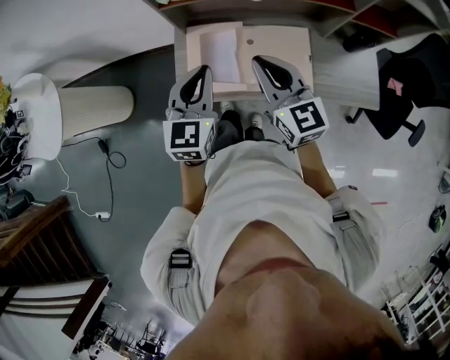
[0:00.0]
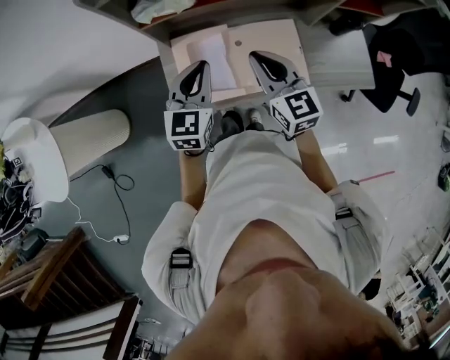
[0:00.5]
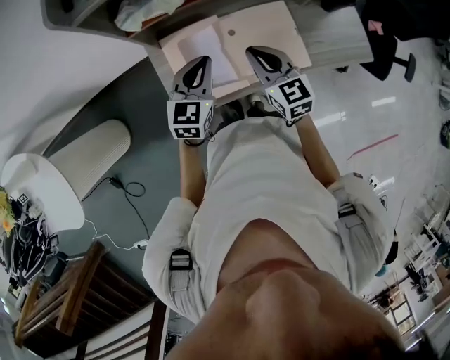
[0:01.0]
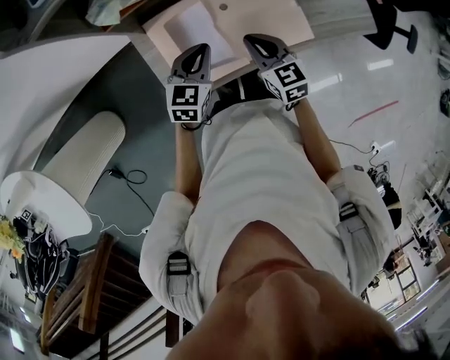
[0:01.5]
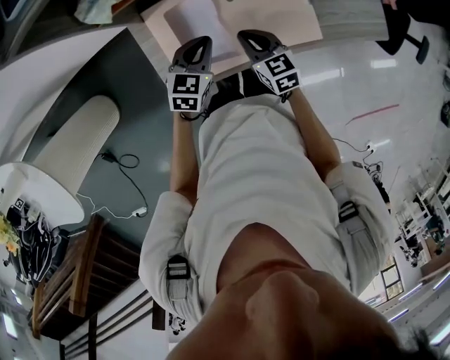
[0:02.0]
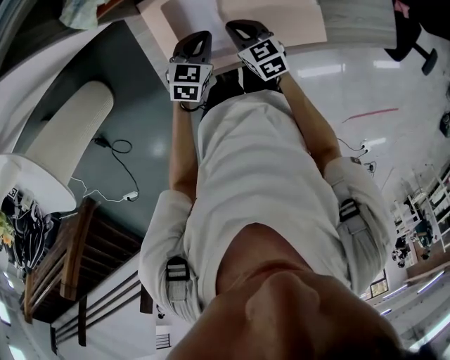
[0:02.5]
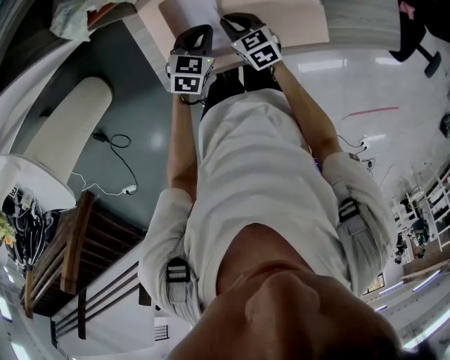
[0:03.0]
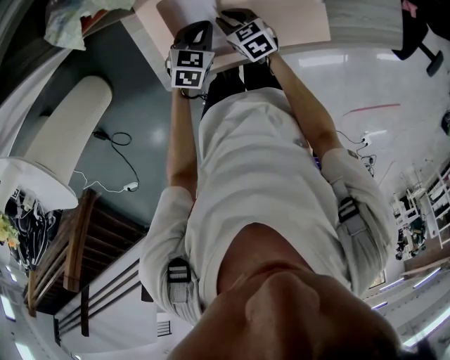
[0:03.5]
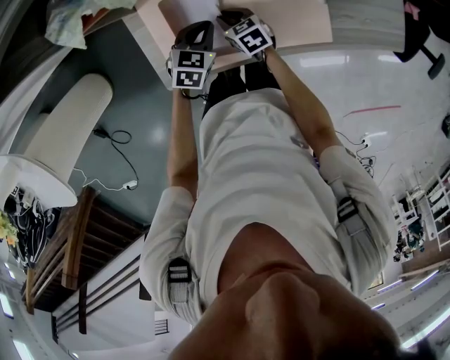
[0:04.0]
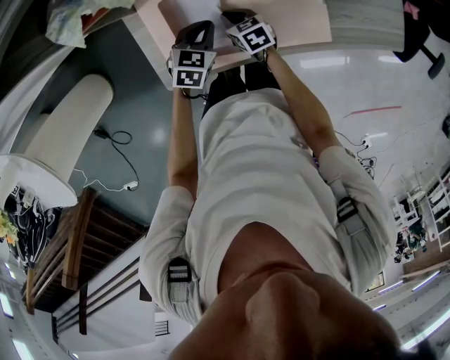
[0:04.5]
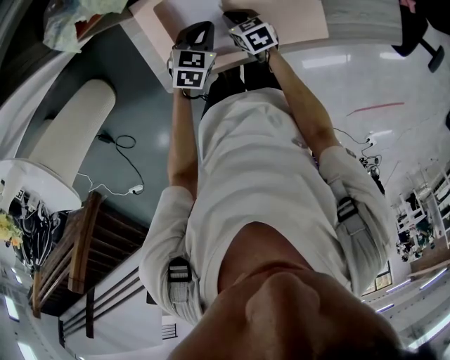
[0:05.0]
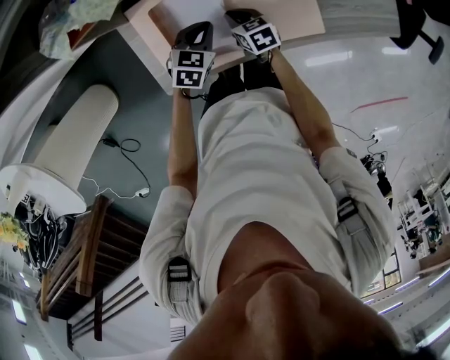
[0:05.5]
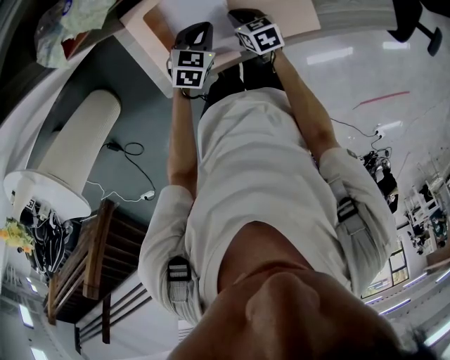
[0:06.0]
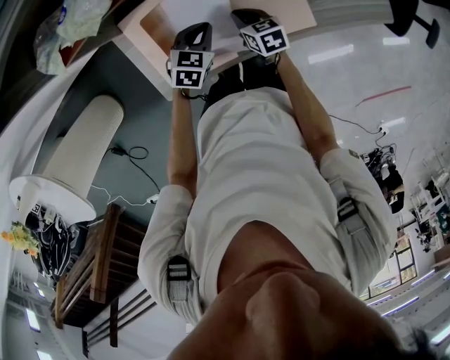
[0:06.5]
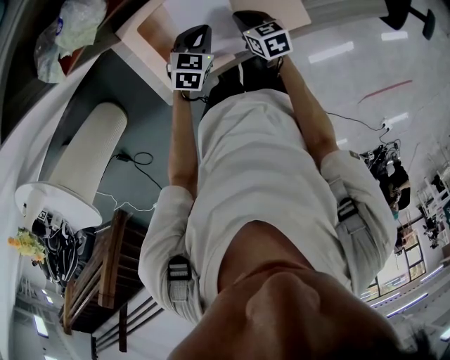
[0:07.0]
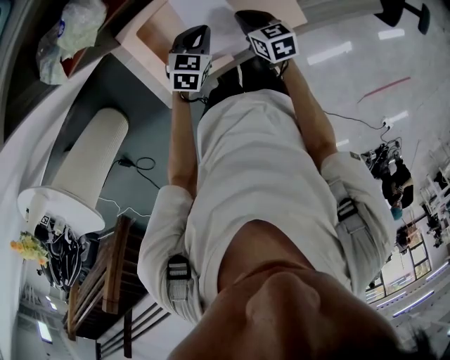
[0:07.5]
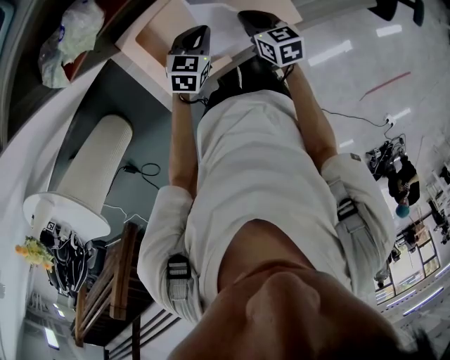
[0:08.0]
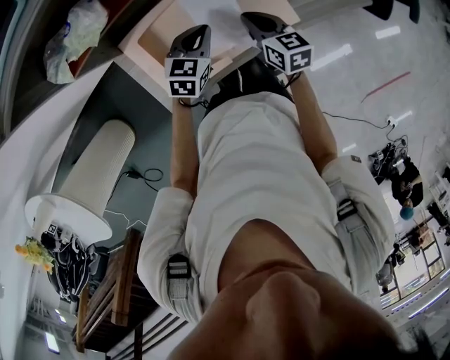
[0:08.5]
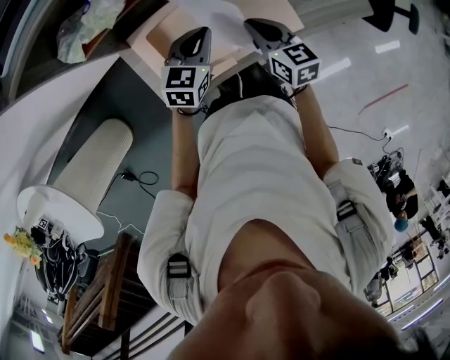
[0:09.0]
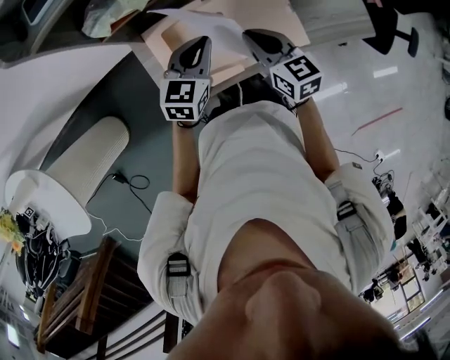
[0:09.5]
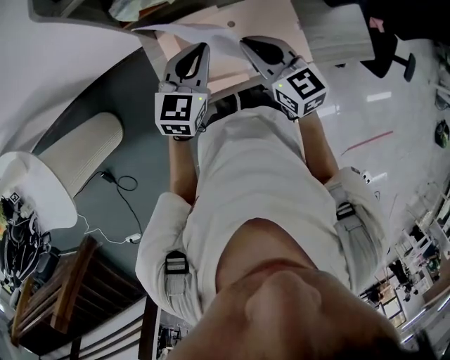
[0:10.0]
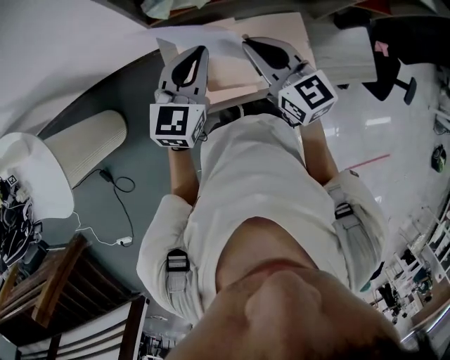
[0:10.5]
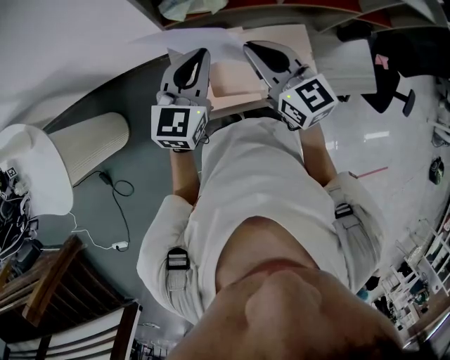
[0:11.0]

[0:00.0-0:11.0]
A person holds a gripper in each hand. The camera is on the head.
0.0 to 2.0 s: The two grippers go approximately 30 cm downward. The left gripper rotates roughly 40 degrees. The right gripper tips its fingers downward by approximately 30 degrees.
2.0 to 3.5 s: The grippers both shift downward by some 10 cm.
3.5 to 5.5 s: The grippers make only small movements.
5.5 to 7.5 s: The right gripper shifts some 10 cm to the right and upward. The left gripper shifts by about 5 cm.
7.5 to 9.0 s: Both grippers move upward, roughly 15 cm.
9.0 to 11.0 s: The grippers both shift upward and to the left by approximately 25 cm. The left gripper swivels roughly 30 degrees; the right gripper swivels about 30 degrees.

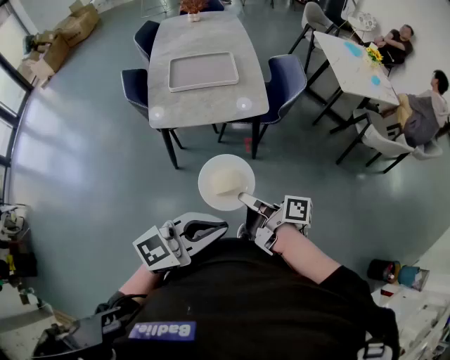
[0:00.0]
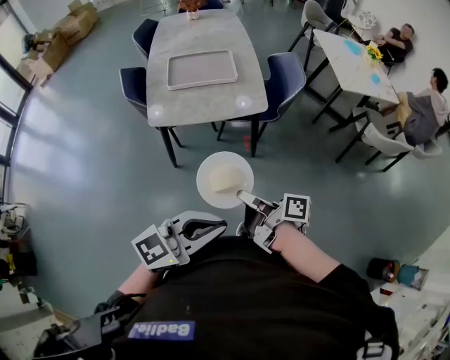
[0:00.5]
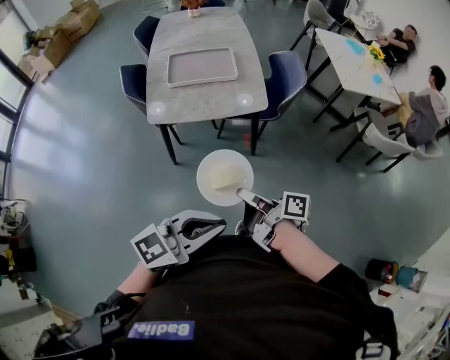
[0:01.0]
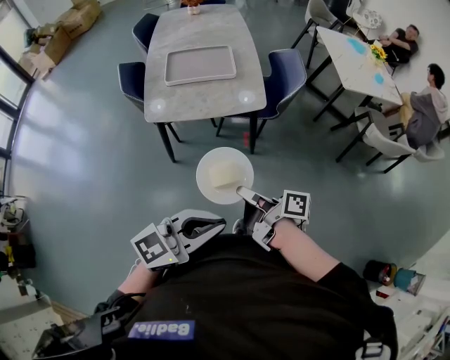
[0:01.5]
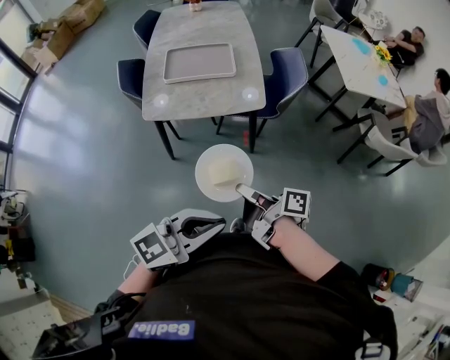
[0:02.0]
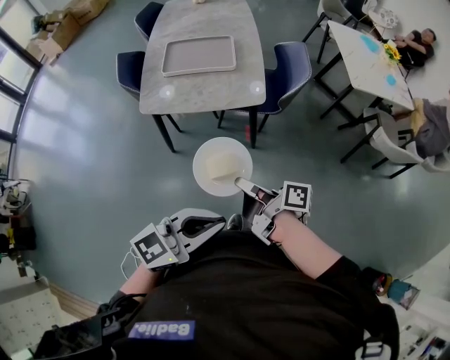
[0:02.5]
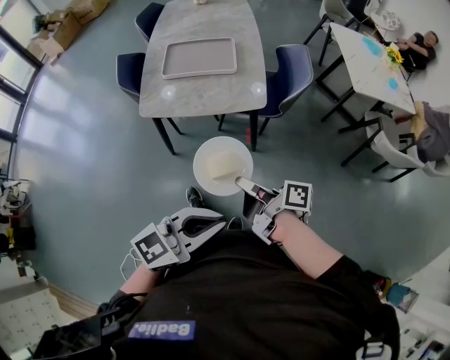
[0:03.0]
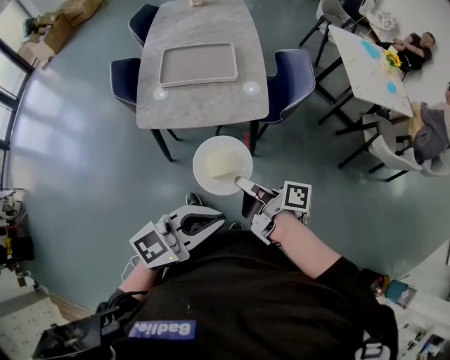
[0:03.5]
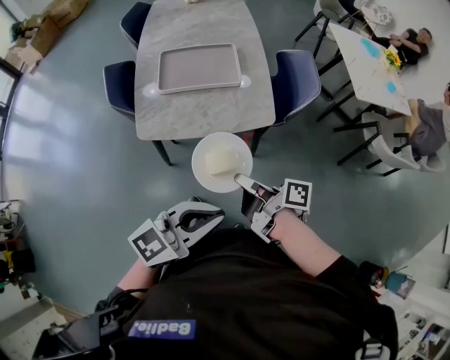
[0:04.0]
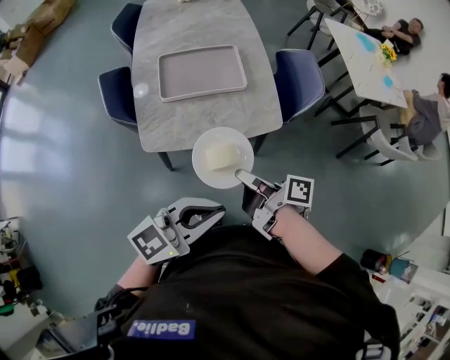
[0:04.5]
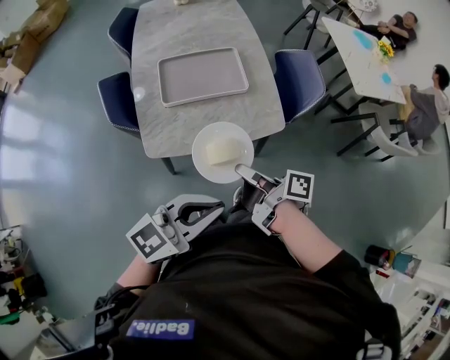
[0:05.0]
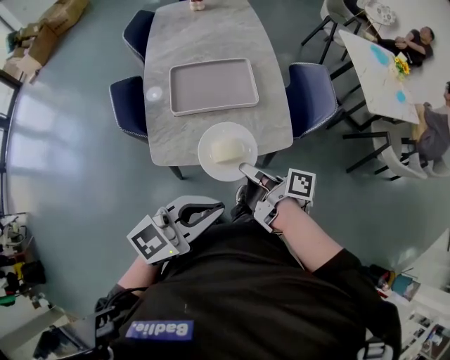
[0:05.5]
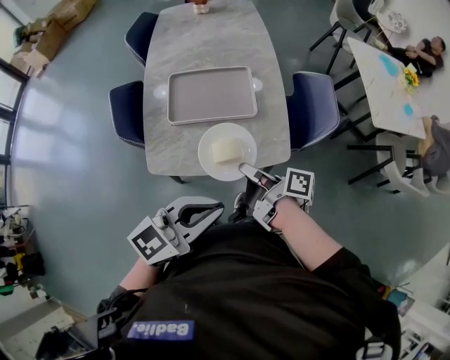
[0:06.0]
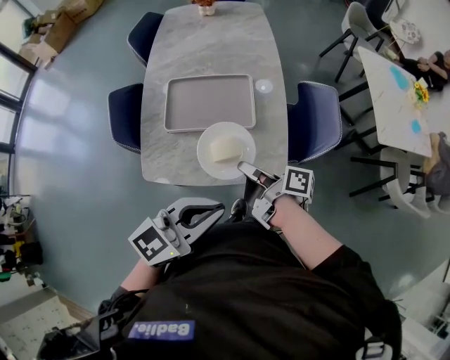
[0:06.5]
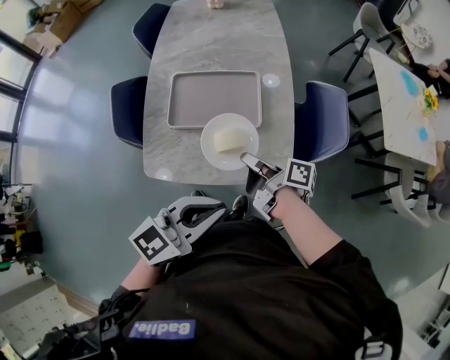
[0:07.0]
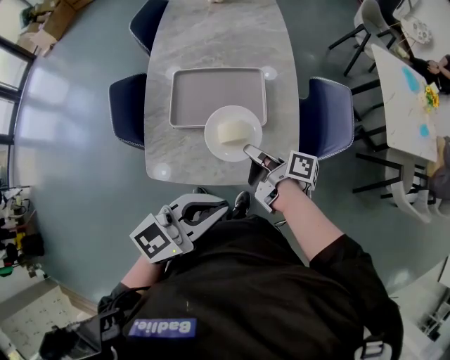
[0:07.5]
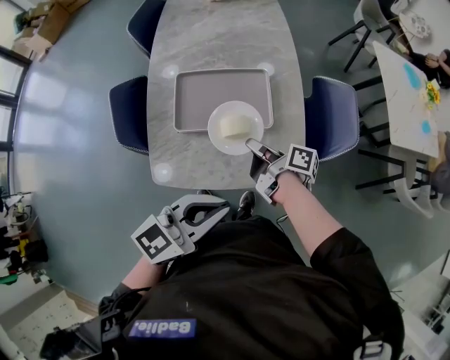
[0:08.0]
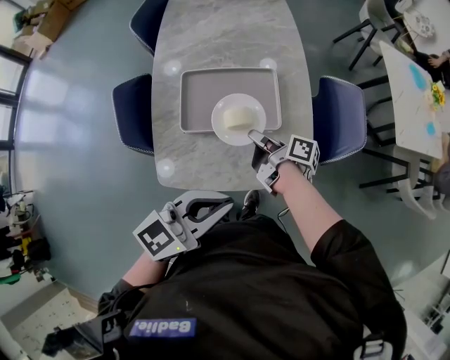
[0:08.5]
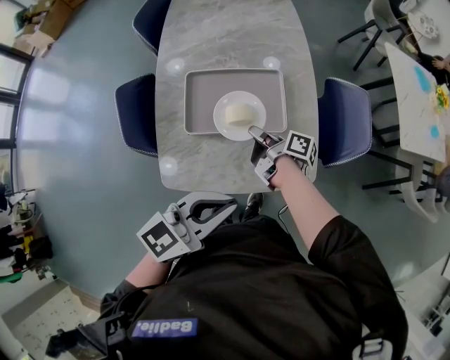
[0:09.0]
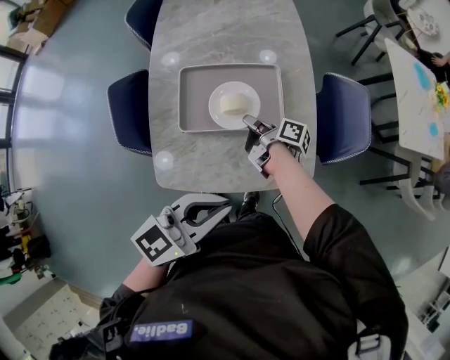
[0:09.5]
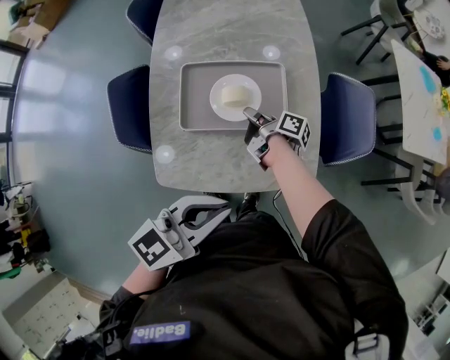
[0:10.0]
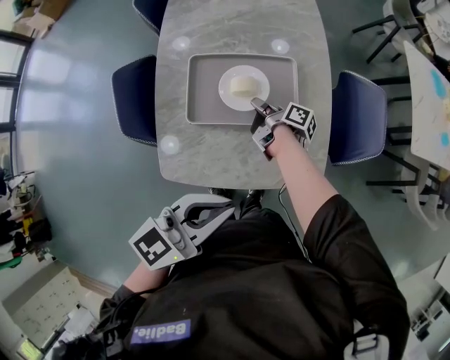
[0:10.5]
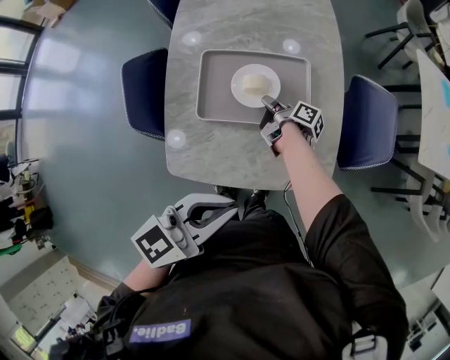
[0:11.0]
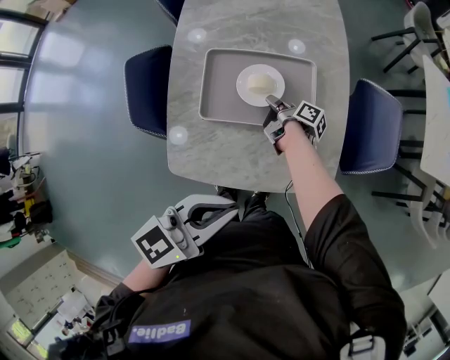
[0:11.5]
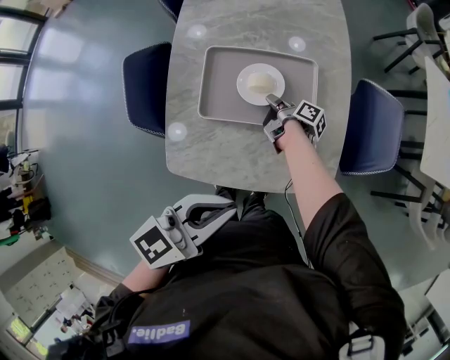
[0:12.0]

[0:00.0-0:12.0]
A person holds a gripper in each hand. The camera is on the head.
0.0 to 2.0 s: The left gripper ends up approximately 5 cm from where it was.
2.0 to 4.0 s: The left gripper changes place by approximately 15 cm.
4.0 to 6.0 s: The left gripper moves roughly 15 cm.
6.0 to 8.0 s: The left gripper changes place by approximately 10 cm.
8.0 to 10.0 s: The left gripper moves approximately 5 cm.

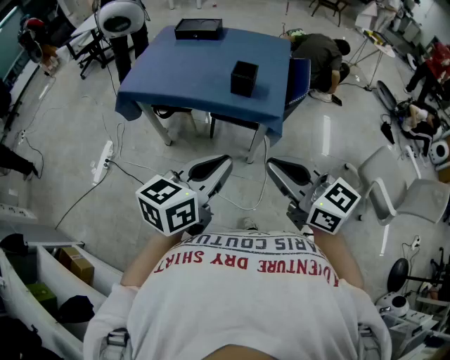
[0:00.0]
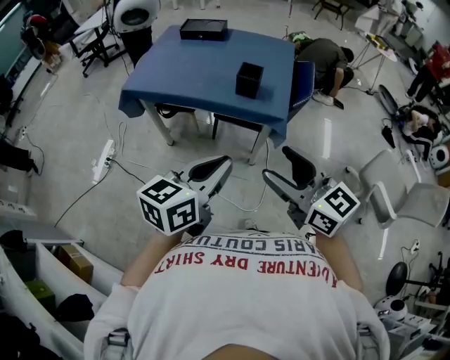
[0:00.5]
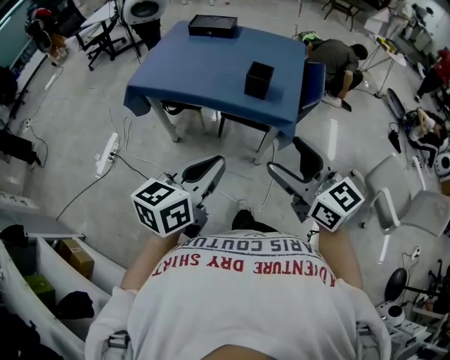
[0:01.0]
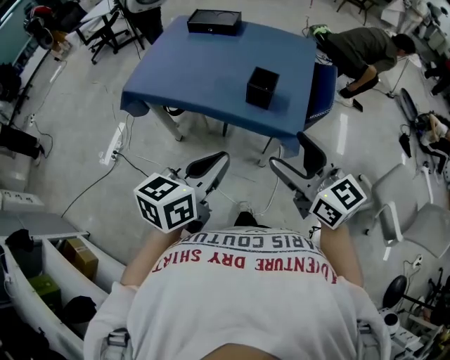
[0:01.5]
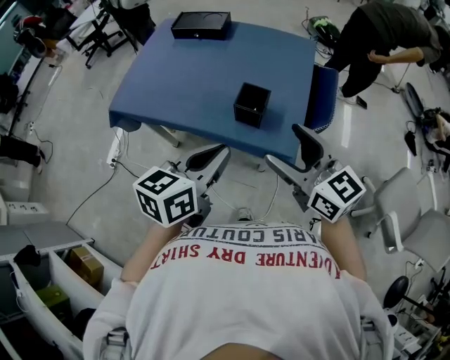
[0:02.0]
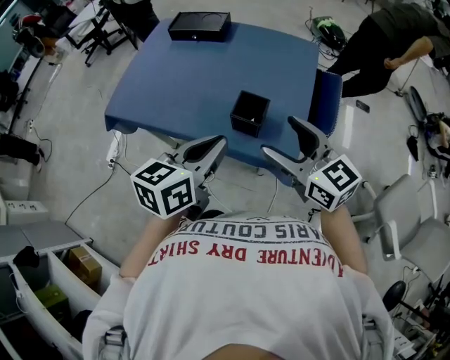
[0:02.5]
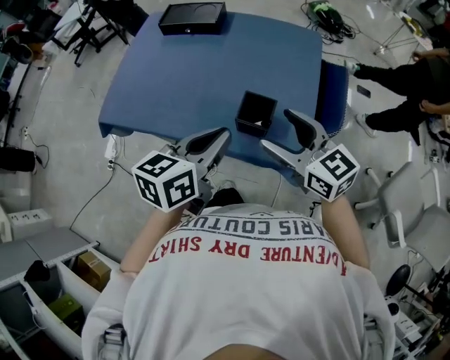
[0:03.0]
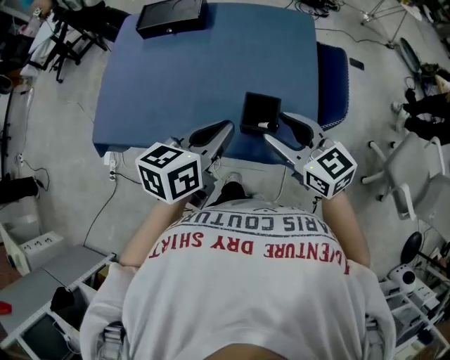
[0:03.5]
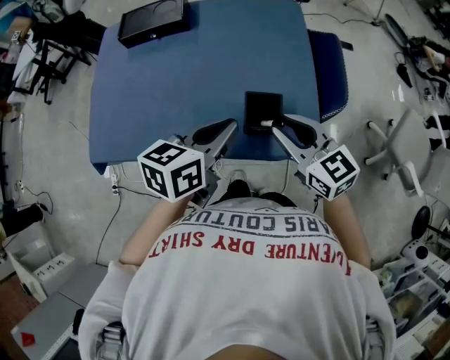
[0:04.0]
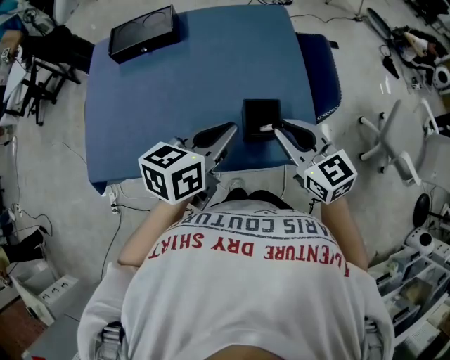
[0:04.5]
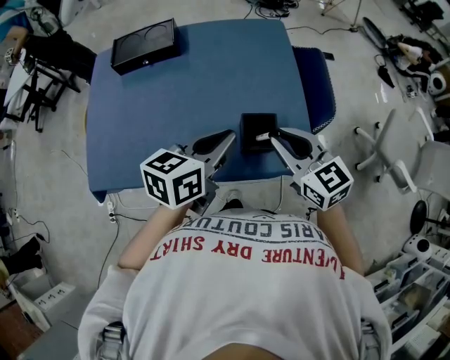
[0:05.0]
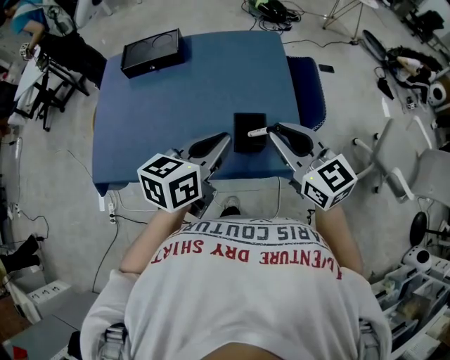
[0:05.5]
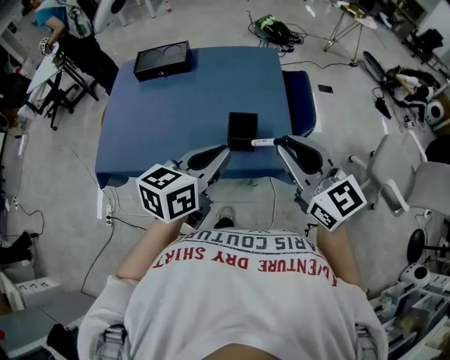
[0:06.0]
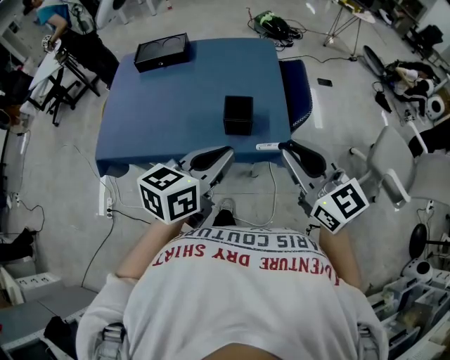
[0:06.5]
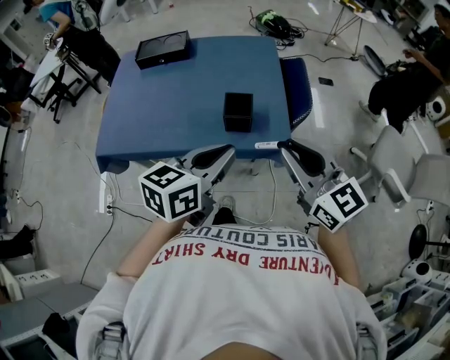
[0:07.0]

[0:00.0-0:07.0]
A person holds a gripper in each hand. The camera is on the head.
0.0 to 2.0 s: The grippers both shift forward by about 25 cm. The right gripper opens its fingers.
2.0 to 3.5 s: The left gripper goes roughly 15 cm forward, while the right gripper travels forward and downward by about 15 cm.
3.5 to 5.0 s: The right gripper closes up.
5.0 to 7.0 s: The right gripper moves backward, upward and to the right, approximately 20 cm. Meanwhile the left gripper is displaced backward and upward by some 15 cm.
